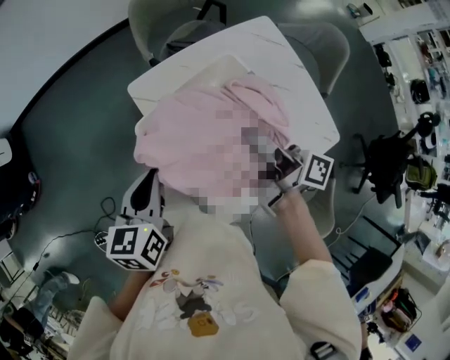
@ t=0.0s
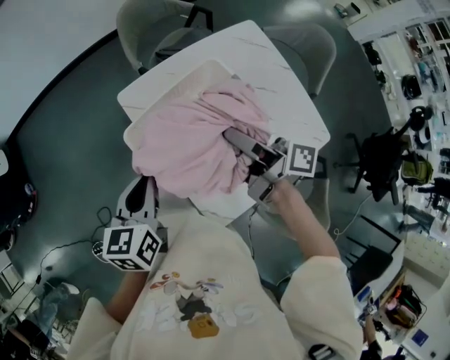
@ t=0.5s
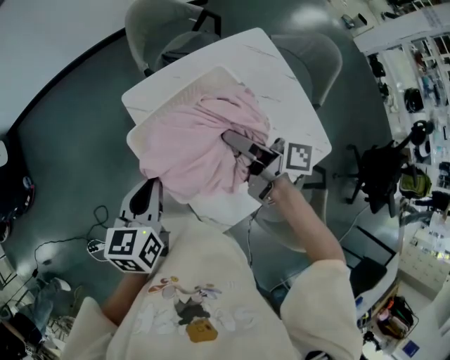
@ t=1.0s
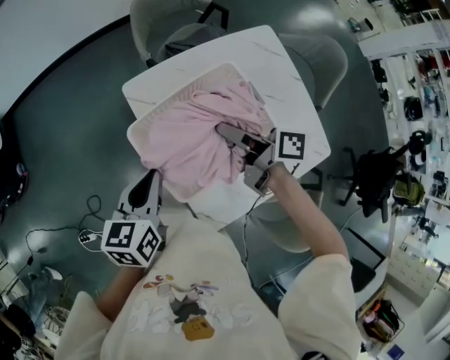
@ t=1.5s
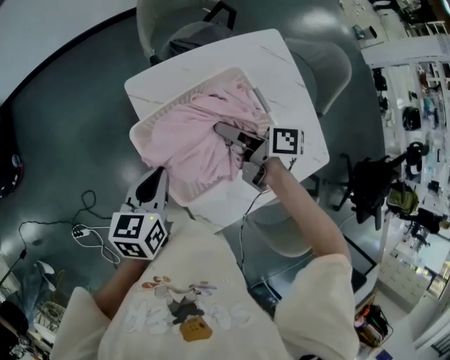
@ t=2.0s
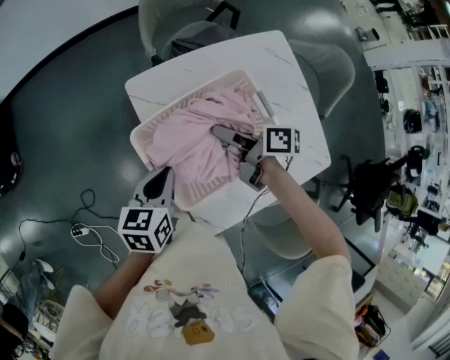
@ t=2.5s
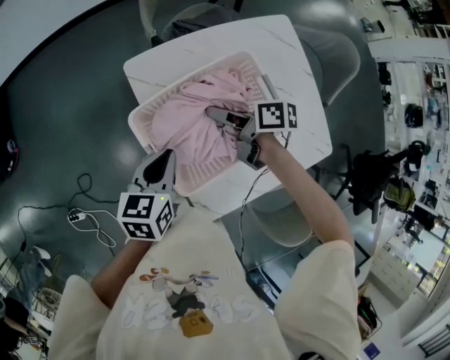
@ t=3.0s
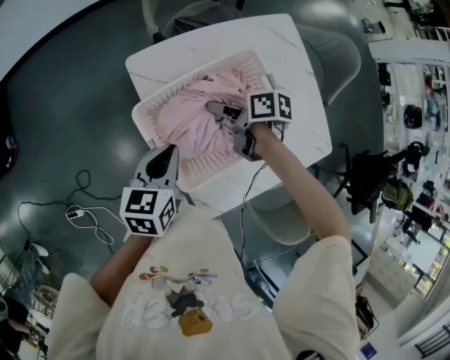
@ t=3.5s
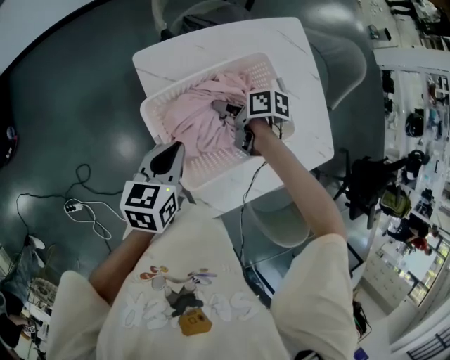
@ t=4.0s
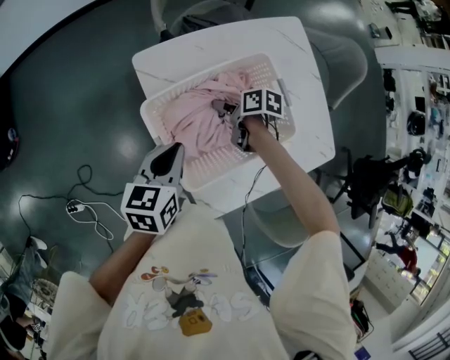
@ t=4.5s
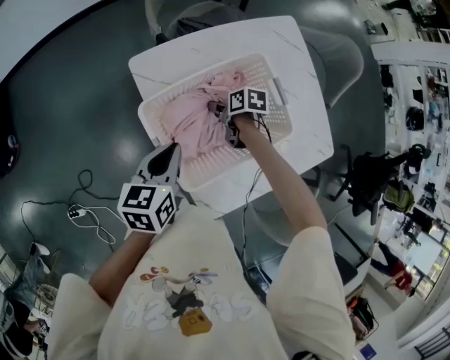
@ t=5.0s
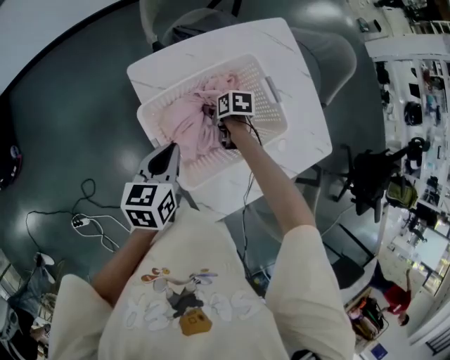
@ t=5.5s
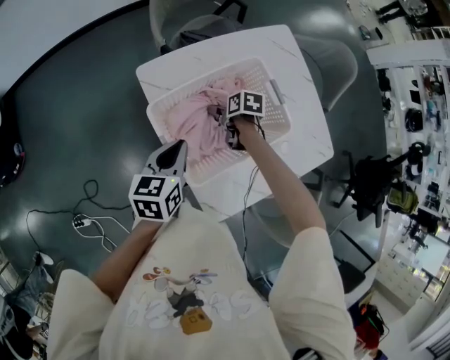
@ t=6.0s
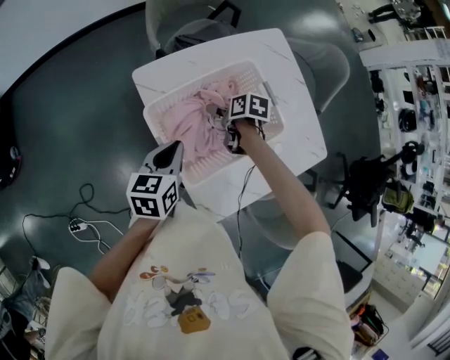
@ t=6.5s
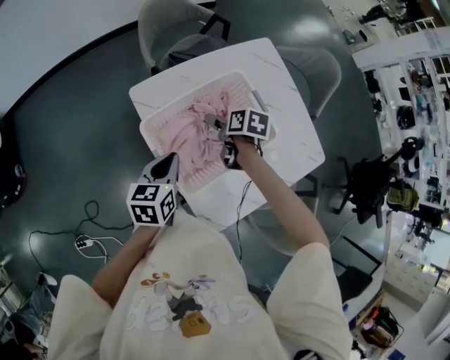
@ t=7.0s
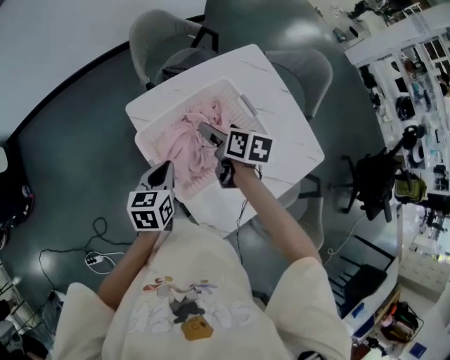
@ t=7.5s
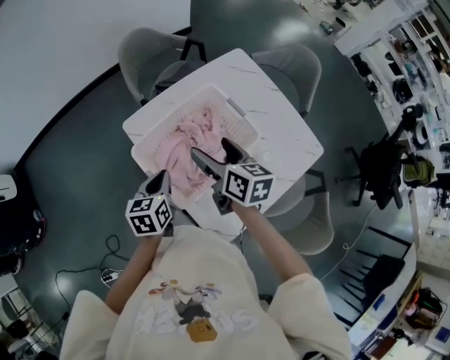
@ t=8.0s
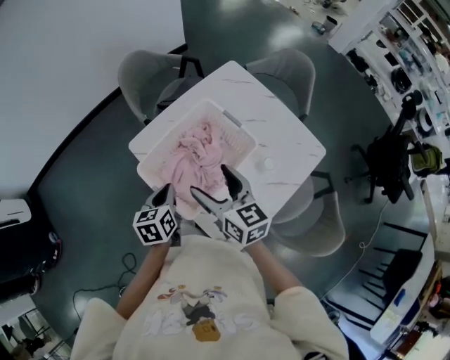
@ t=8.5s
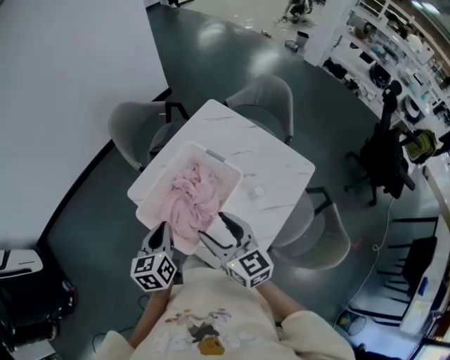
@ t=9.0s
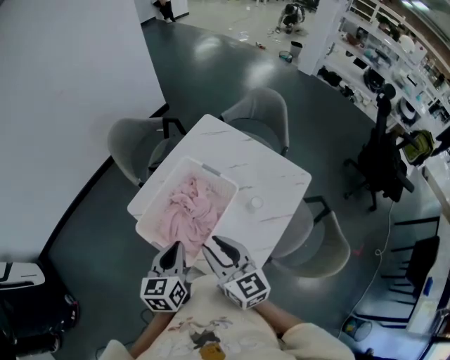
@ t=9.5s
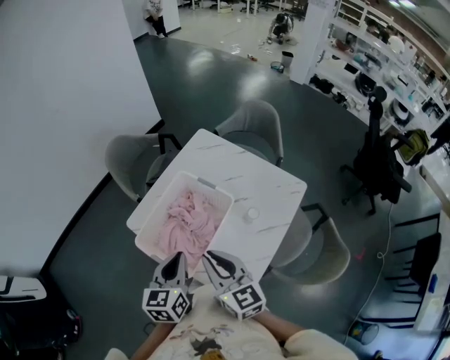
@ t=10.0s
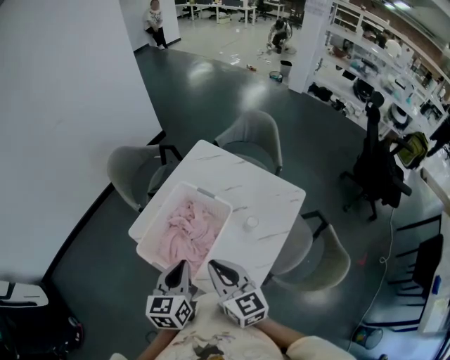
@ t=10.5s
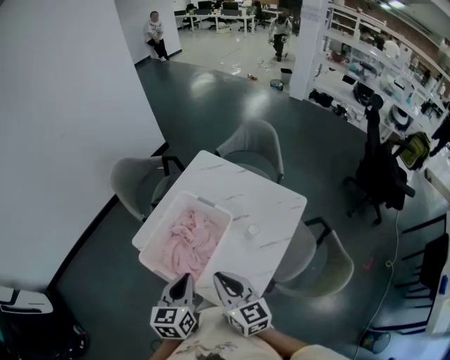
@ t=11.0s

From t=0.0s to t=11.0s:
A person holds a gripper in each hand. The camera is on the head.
From t=0.0s to t=2.0s: The left gripper is displaced downward by approximately 5 cm. The right gripper goes some 15 cm downward and forward, and rotates approximately 30 degrees.
From t=2.0s to t=3.5s: The right gripper shifts some 10 cm downward, and rotates roughly 30 degrees.
From t=3.5s to t=5.5s: The right gripper travels downward by approximately 10 cm, and swivels roughly 30 degrees.
From t=5.5s to t=7.5s: The right gripper is displaced upward by about 20 cm, and swivels some 30 degrees.
From t=7.5s to t=9.0s: The right gripper heads backward and upward, covering roughly 20 cm, and turns by some 40 degrees, while the left gripper goes approximately 10 cm upward.
From t=9.0s to t=11.0s: The right gripper is displaced backward by about 5 cm, and closes. Meanwhile the left gripper is displaced to the right and backward by about 10 cm.

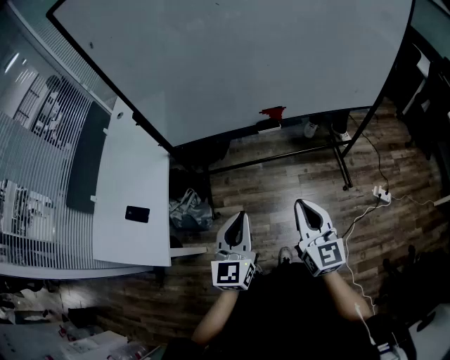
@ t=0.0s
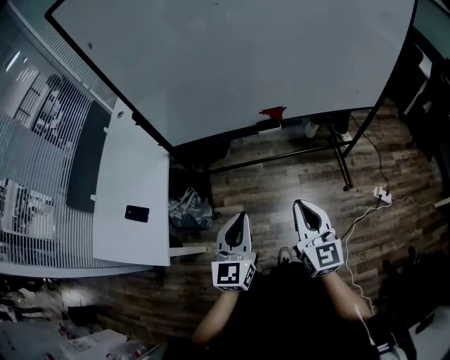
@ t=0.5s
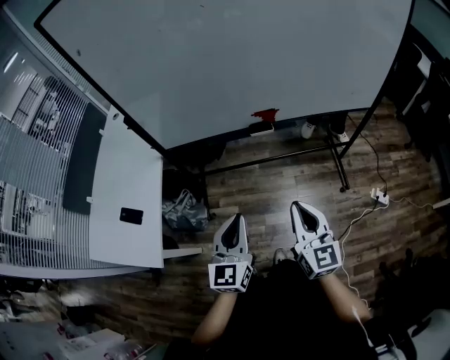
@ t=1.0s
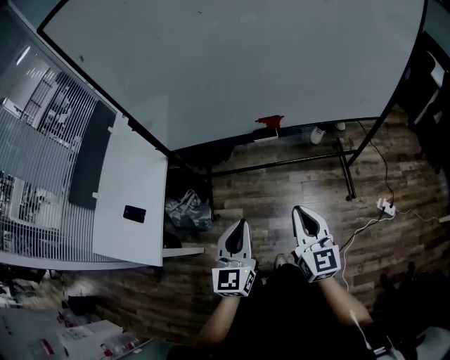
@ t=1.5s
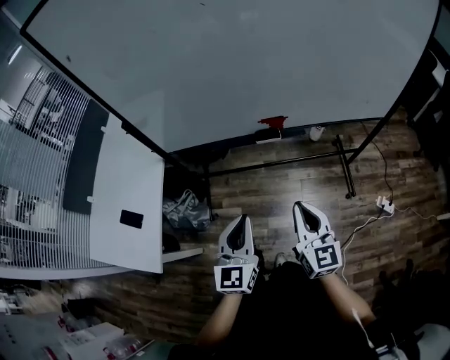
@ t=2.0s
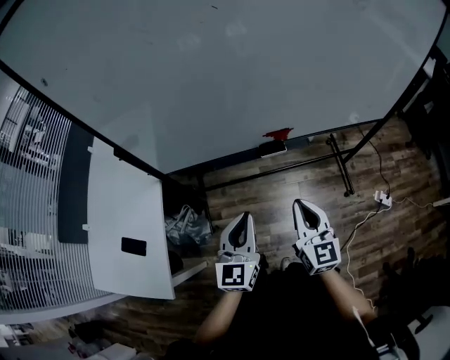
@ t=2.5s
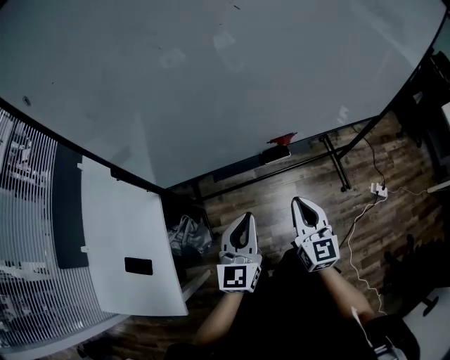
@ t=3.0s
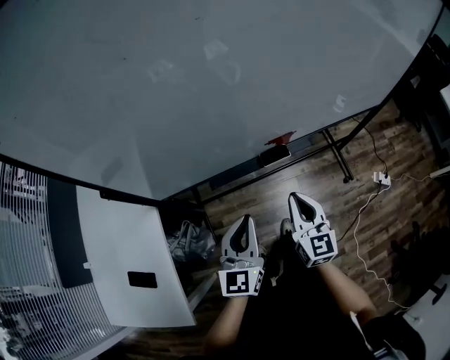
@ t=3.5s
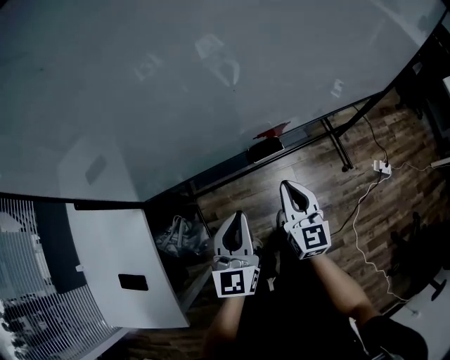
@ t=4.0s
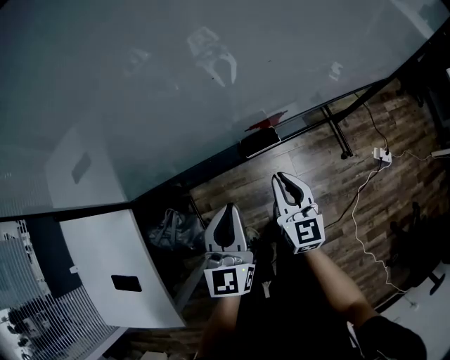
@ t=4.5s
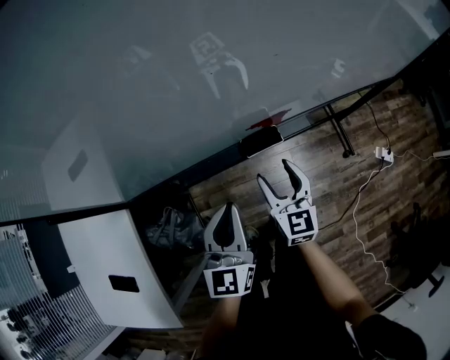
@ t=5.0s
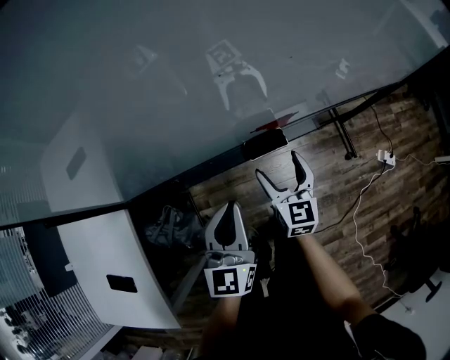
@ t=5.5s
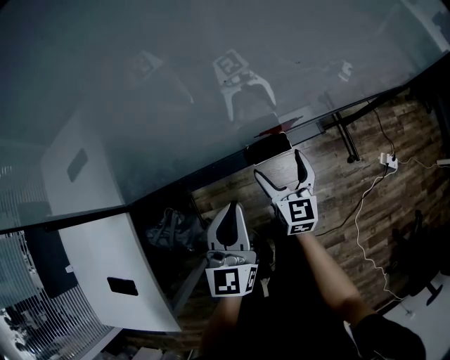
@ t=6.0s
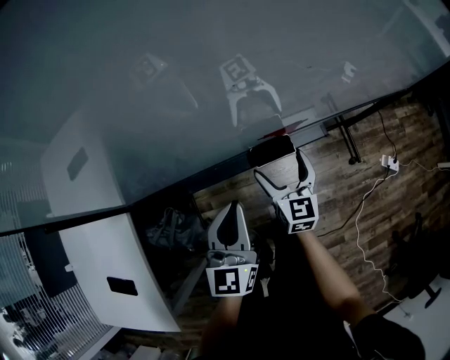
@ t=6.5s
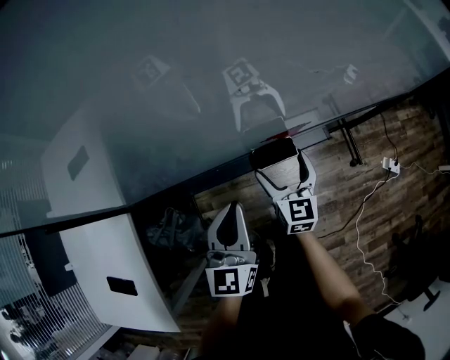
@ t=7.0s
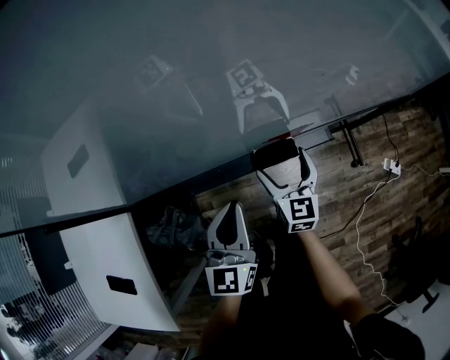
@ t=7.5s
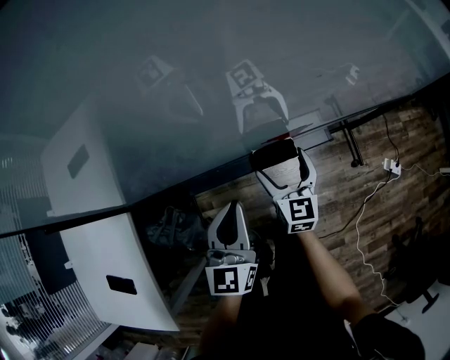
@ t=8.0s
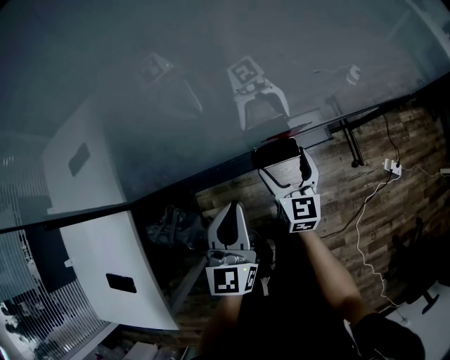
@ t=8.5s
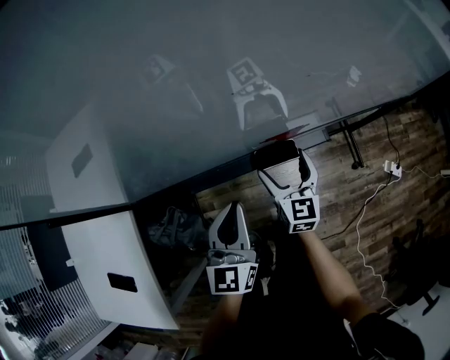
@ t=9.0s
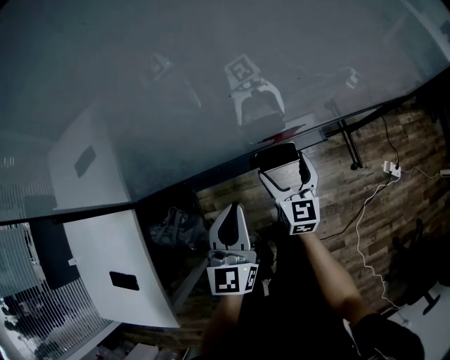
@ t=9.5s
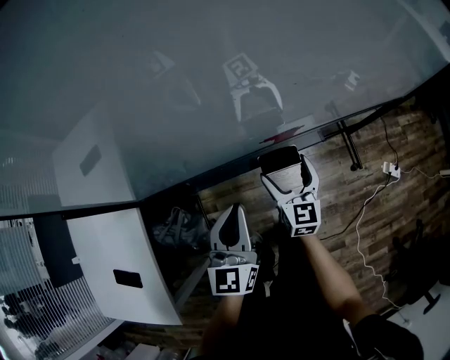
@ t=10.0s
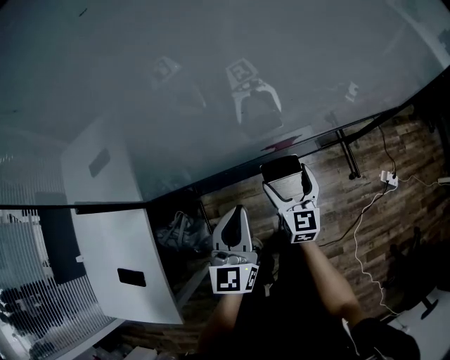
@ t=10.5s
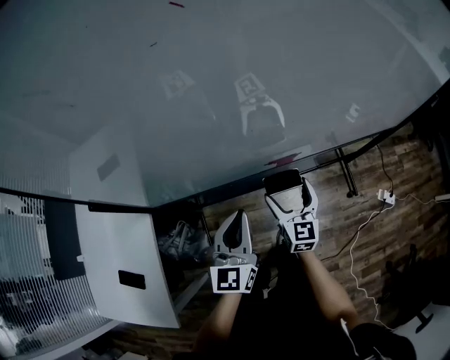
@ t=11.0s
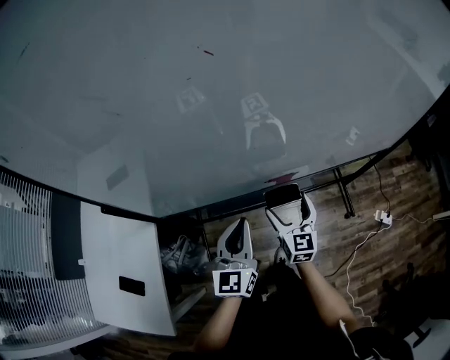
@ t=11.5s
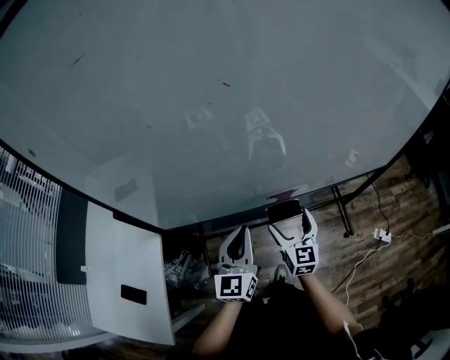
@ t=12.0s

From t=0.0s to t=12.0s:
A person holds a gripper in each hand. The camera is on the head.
From t=0.0s to t=2.0s: Both grippers move forward, approximately 5 cm.
From t=2.0s to t=4.0s: The right gripper shifts some 20 cm forward, downward and to the left; the left gripper goes about 20 cm forward and downward.
From t=4.0s to t=6.0s: The right gripper is displaced downward and forward by approximately 15 cm, and opens up; the left gripper shifts about 10 cm forward and downward.
From t=6.0s to t=10.0s: The grippers stay close to where they were, moving slightly.
From t=10.0s to t=12.0s: The two grippers go approximately 10 cm upward.

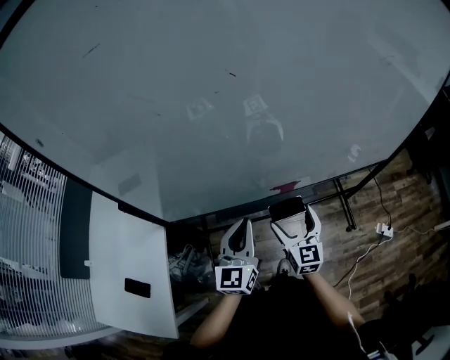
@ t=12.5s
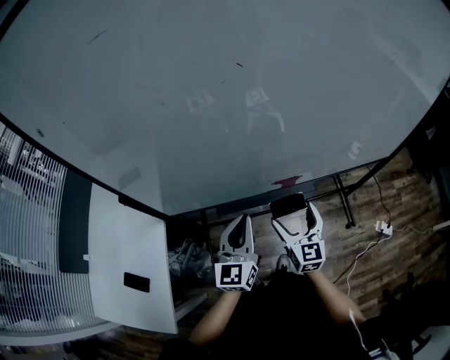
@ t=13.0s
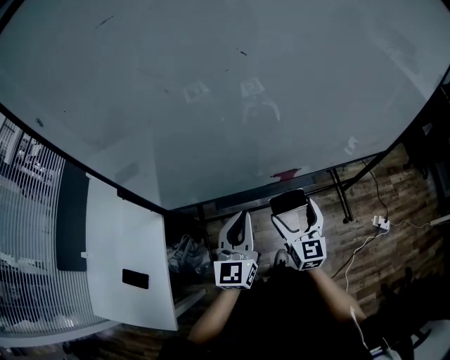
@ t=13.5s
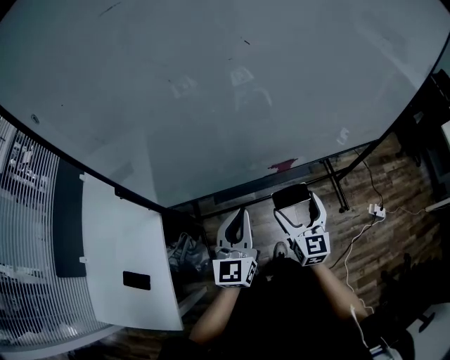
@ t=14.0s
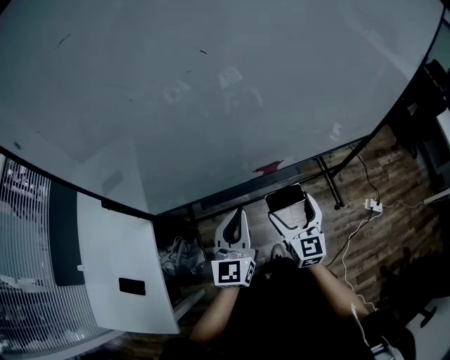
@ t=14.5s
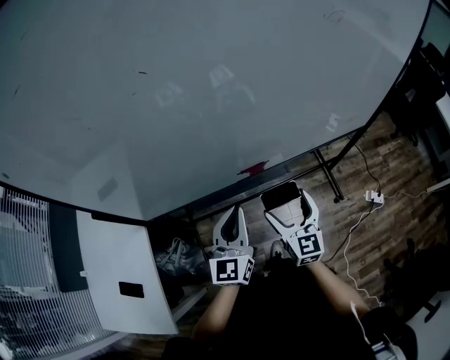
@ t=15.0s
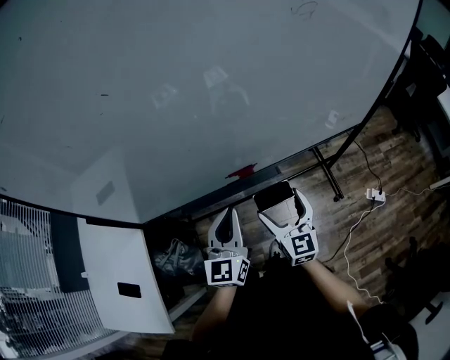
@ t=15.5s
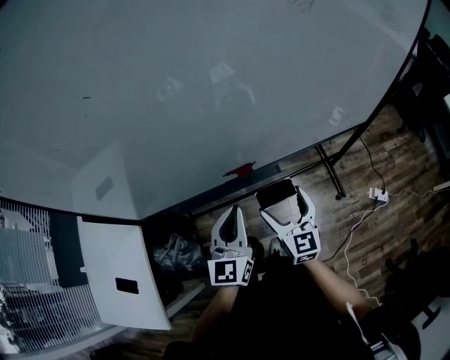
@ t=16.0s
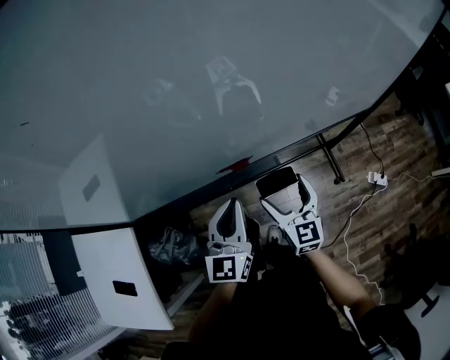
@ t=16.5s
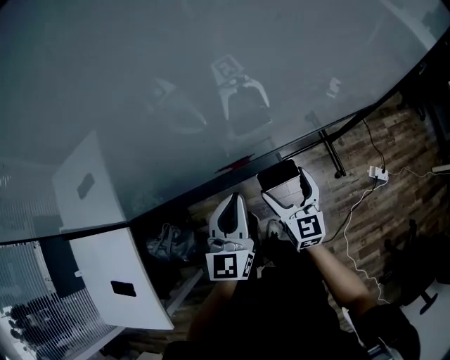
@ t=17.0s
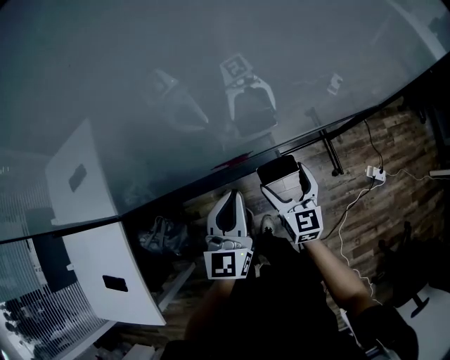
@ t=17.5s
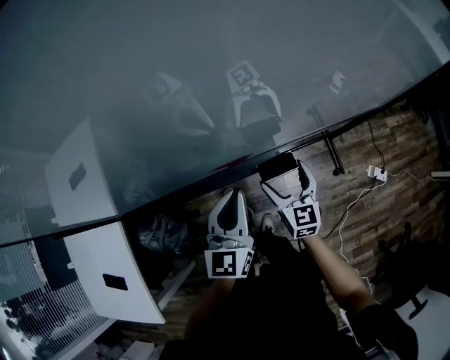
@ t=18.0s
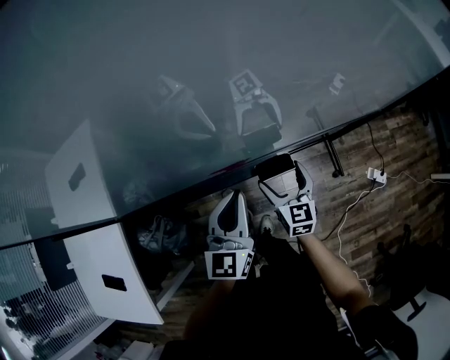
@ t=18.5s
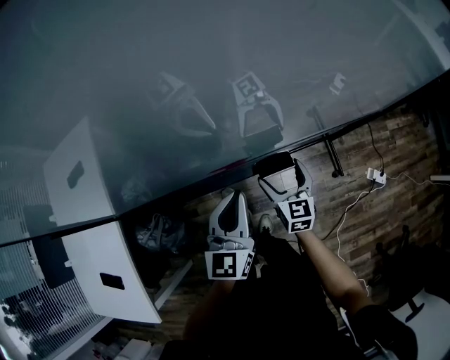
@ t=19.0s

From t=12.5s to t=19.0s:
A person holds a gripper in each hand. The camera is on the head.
From t=12.5s to t=14.5s: The right gripper shifts by some 5 cm.
From t=14.5s to t=17.0s: The left gripper moves to the right, forward and downward, roughly 15 cm, while the right gripper heads downward, to the right and forward, covering some 15 cm.
From t=17.0s to t=19.0s: The right gripper moves downward, approximately 10 cm.
